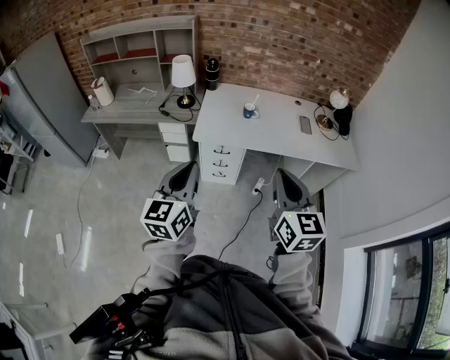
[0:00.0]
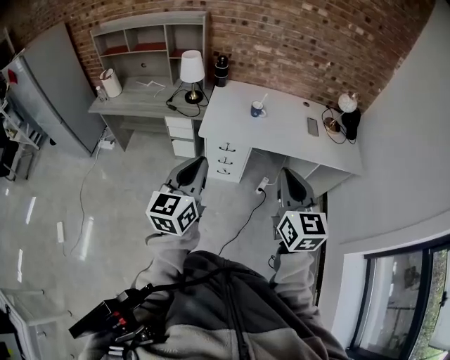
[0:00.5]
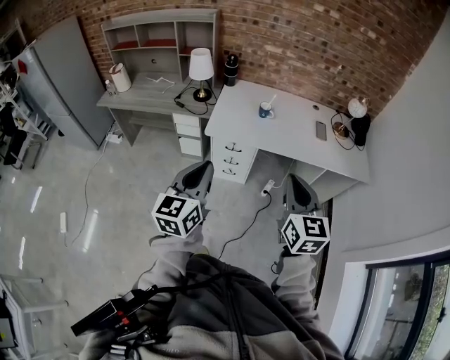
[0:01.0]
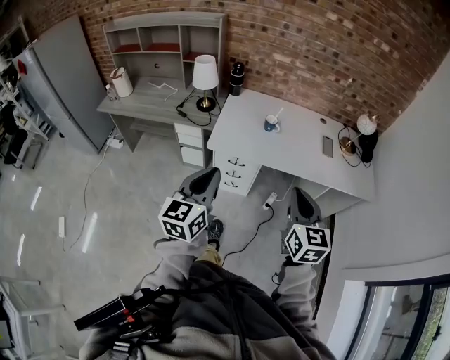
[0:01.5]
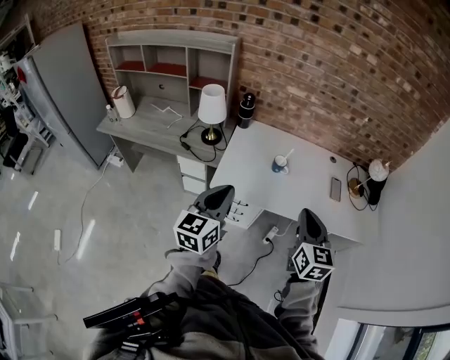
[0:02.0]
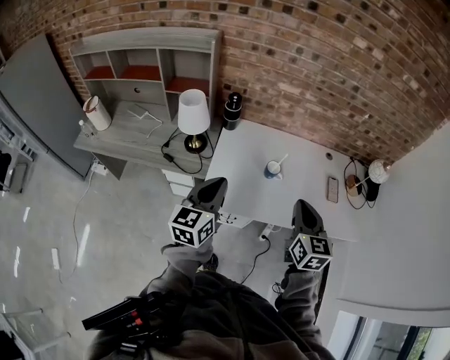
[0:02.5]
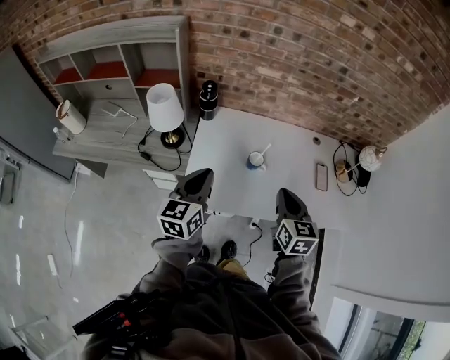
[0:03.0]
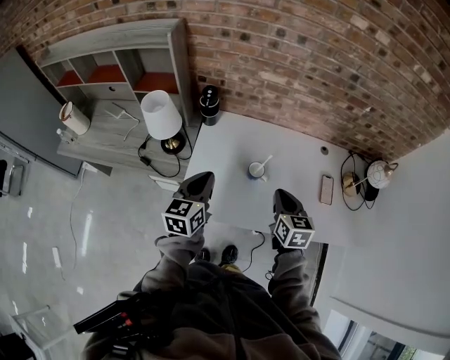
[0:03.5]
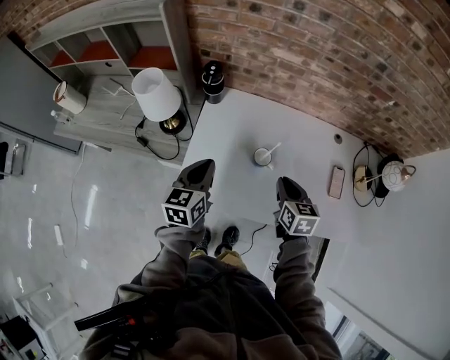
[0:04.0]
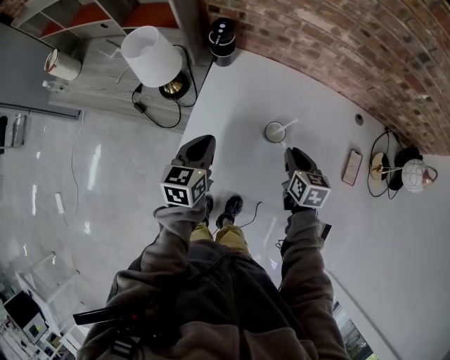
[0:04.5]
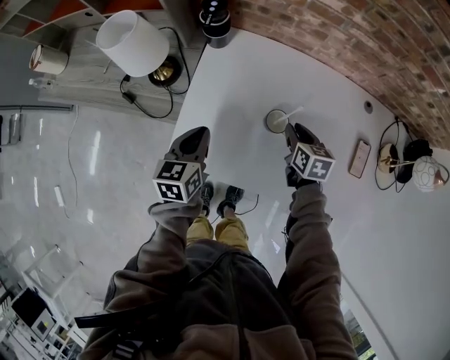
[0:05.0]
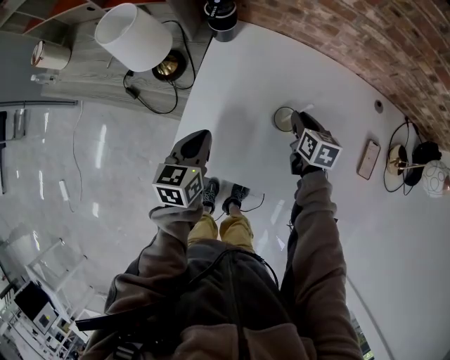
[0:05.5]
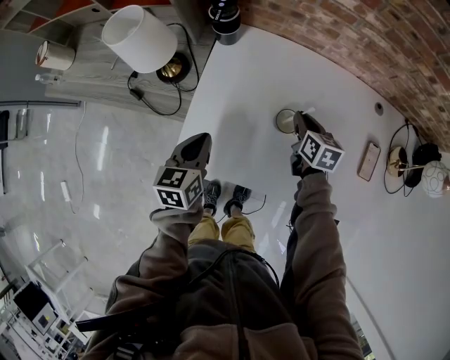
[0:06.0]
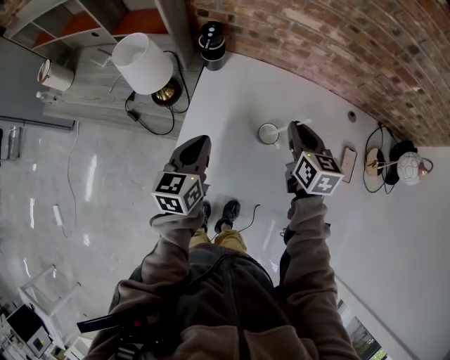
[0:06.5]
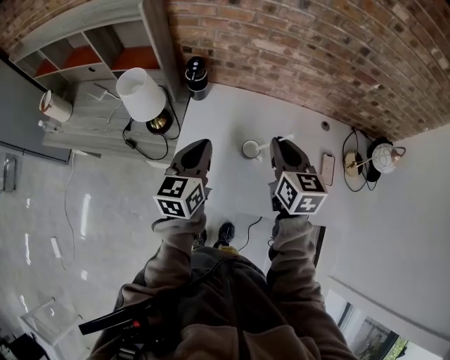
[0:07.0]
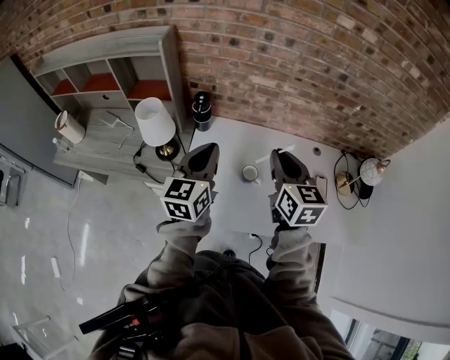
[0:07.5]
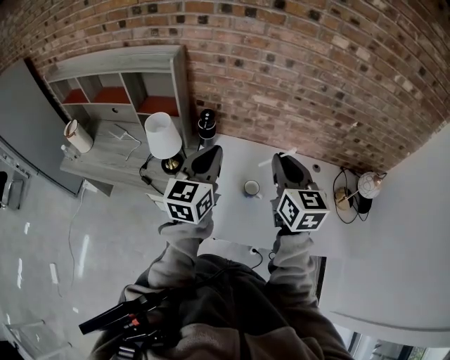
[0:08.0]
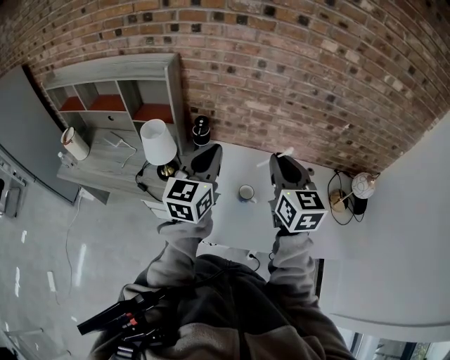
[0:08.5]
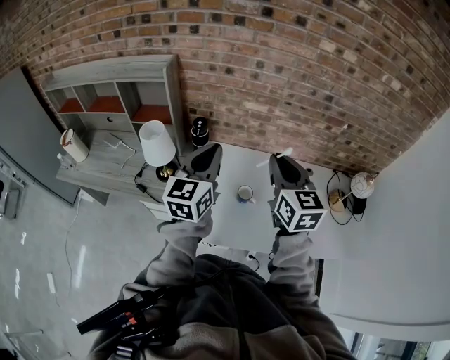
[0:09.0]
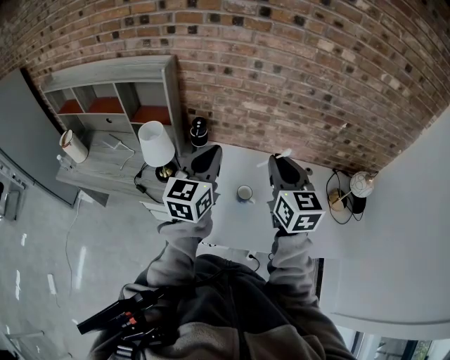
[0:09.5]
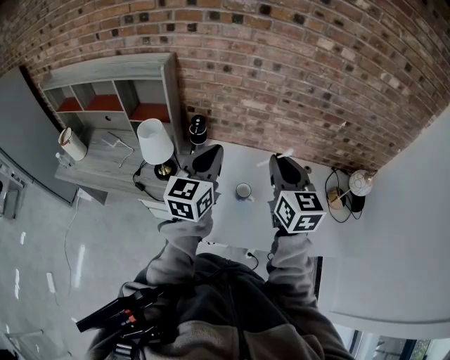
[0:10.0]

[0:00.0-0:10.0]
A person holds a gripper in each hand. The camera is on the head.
0:00.0 to 0:02.0: The grippers both shift forward by roughly 25 cm.
0:02.0 to 0:04.0: The two grippers go approximately 35 cm forward and downward. The left gripper changes its angle by about 20 degrees; the right gripper turns by some 30 degrees.
0:04.0 to 0:06.0: The right gripper goes about 20 cm forward and downward. Meanwhile the left gripper moves downward, some 10 cm.
0:06.0 to 0:08.0: The grippers both shift upward by roughly 35 cm. The right gripper angles its fingers upward, by some 30 degrees. Meanwhile the left gripper tilts its fingers approximately 30 degrees upward.
0:08.0 to 0:10.0: The grippers make only small movements.

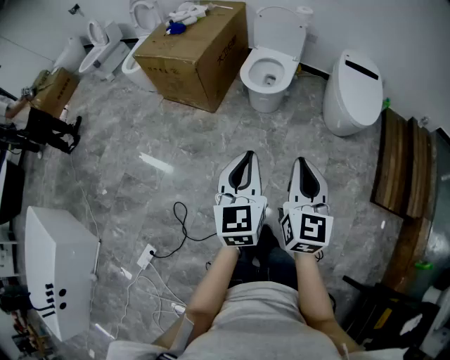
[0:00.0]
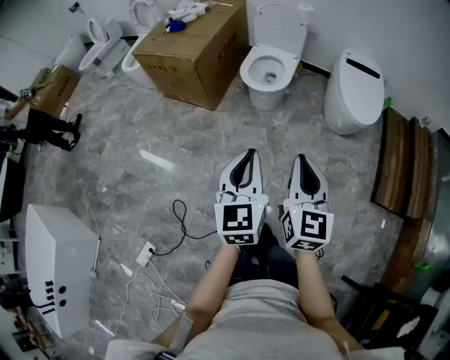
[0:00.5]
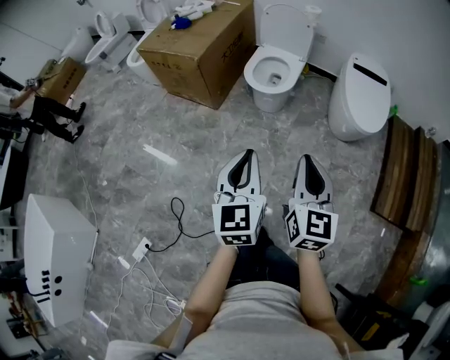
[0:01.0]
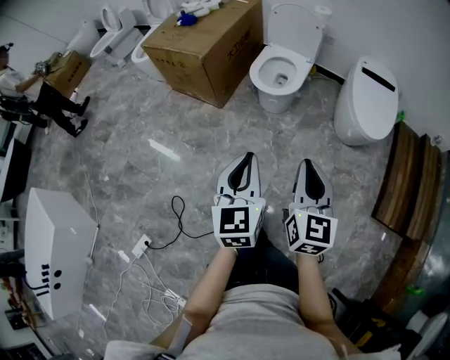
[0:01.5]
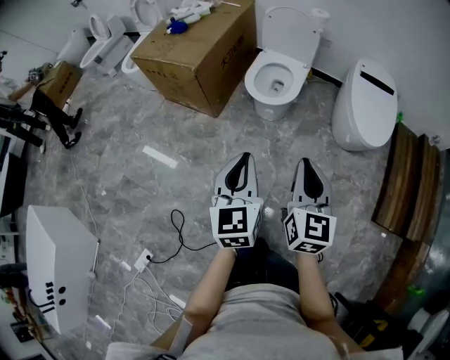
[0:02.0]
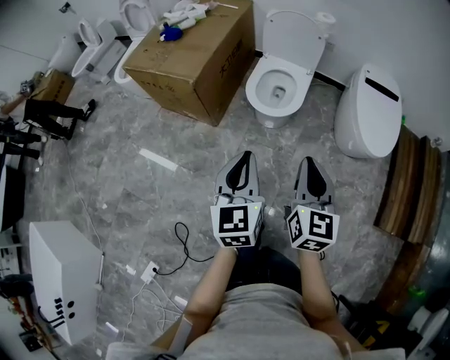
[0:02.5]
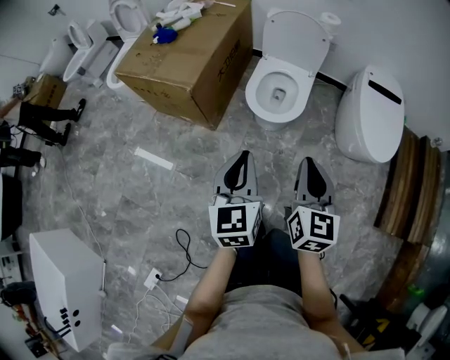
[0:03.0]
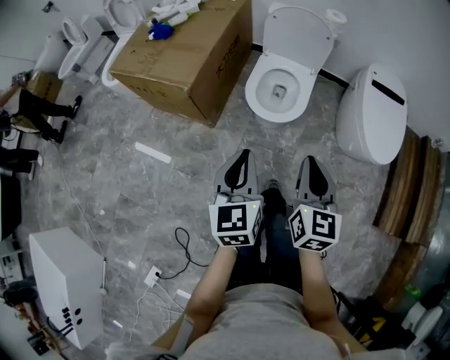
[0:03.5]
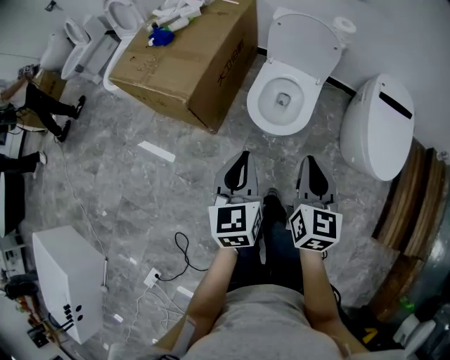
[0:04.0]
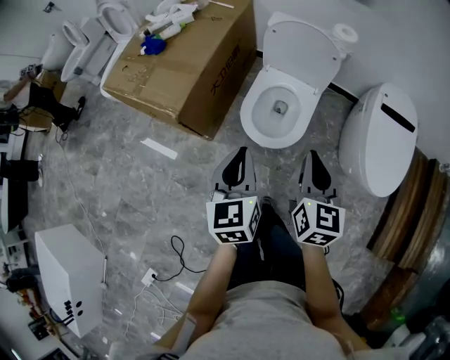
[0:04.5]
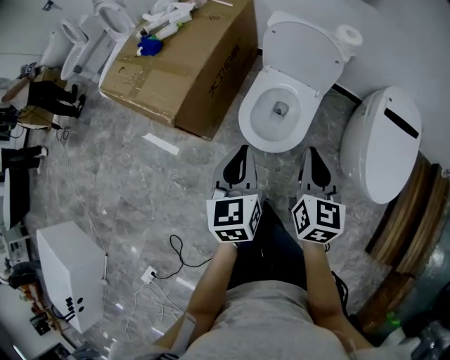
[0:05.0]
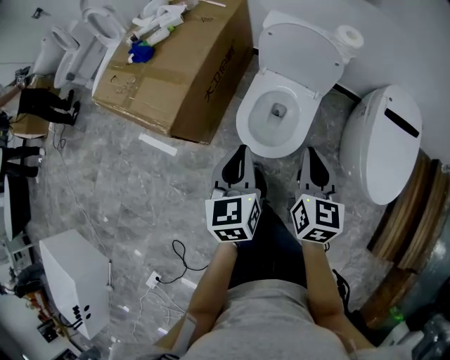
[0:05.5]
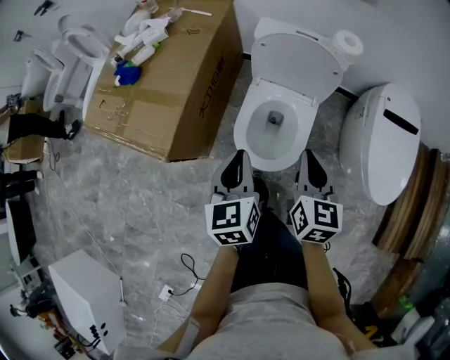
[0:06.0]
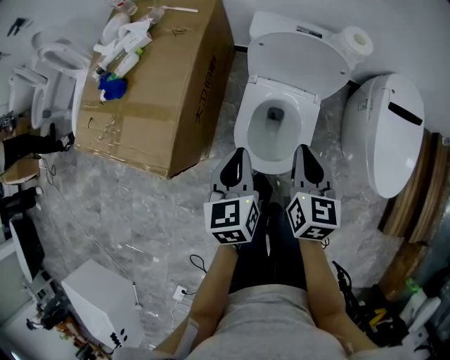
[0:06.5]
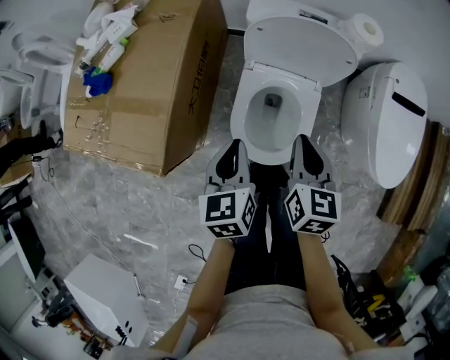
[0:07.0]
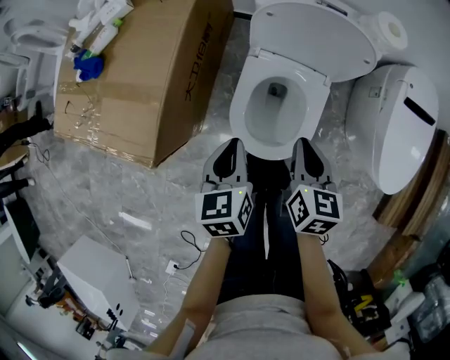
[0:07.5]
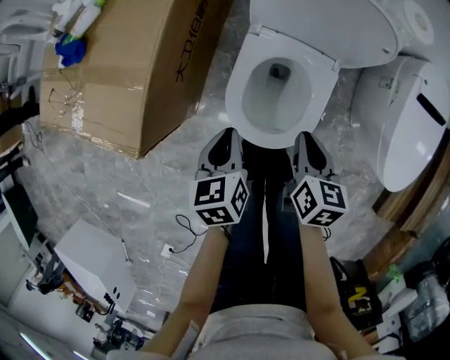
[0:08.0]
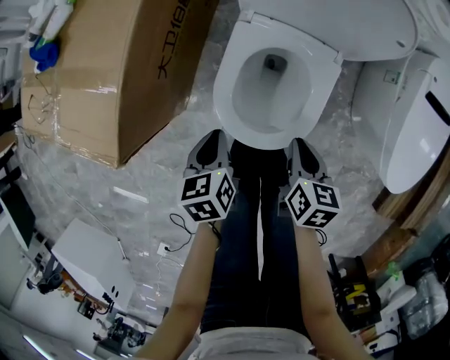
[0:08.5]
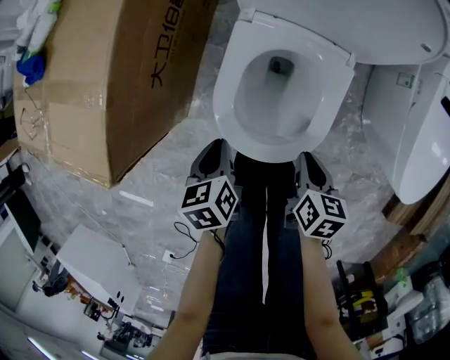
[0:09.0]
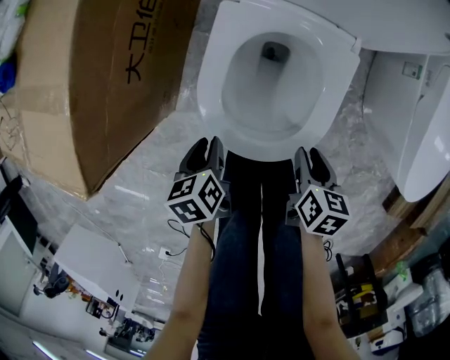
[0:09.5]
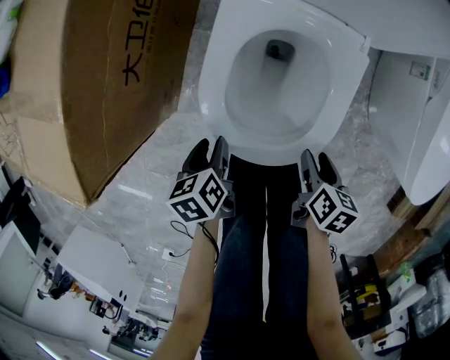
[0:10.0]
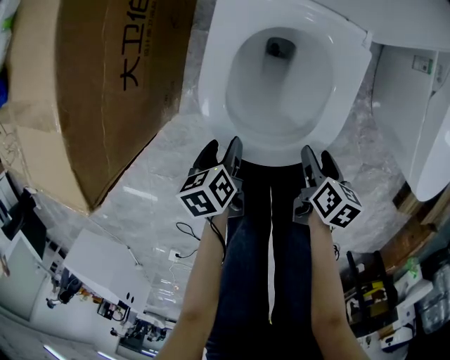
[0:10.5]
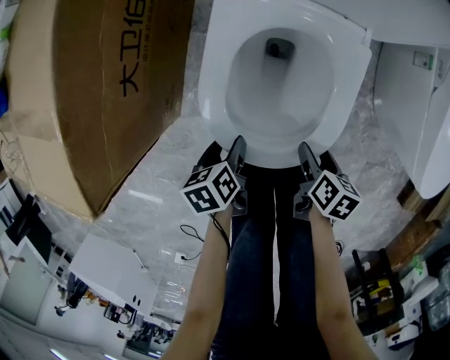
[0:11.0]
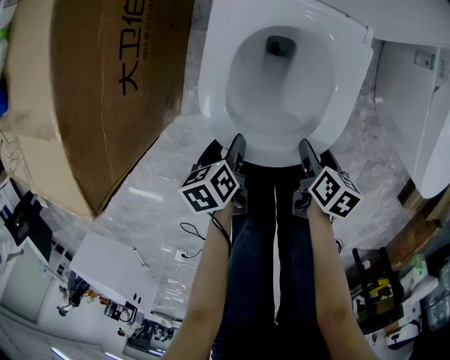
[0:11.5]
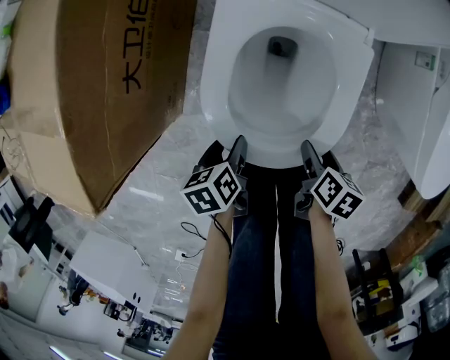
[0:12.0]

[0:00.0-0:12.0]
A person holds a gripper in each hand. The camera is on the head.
0:00.0 to 0:02.0: Both grippers move forward, roughly 15 cm.
0:02.0 to 0:04.0: Both grippers travel together forward, roughly 30 cm.
0:04.0 to 0:06.0: The two grippers go roughly 25 cm forward.
0:06.0 to 0:08.0: The grippers both shift downward by some 20 cm. The left gripper rotates about 20 degrees, while the right gripper changes its angle by some 20 degrees.
0:08.0 to 0:10.0: Both grippers move downward, about 25 cm. The right gripper swivels roughly 20 degrees, and opens its fingers. The left gripper opens its fingers.
0:10.0 to 0:12.0: The grippers stay close to where they were, moving slightly.

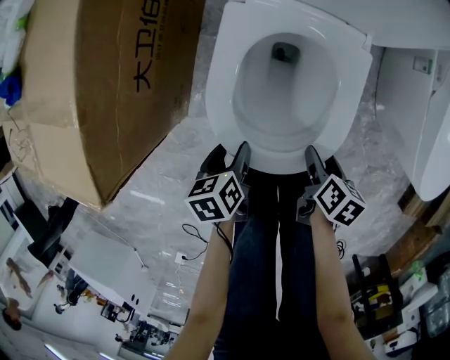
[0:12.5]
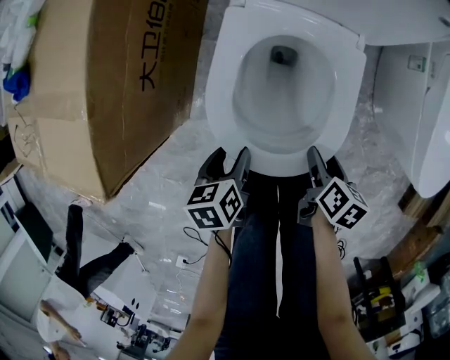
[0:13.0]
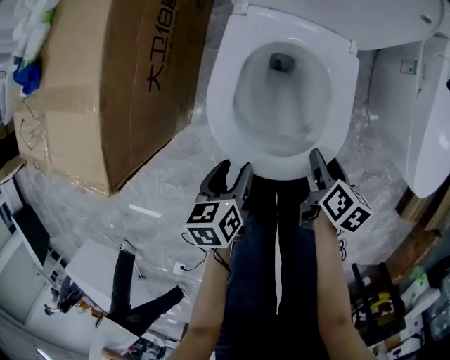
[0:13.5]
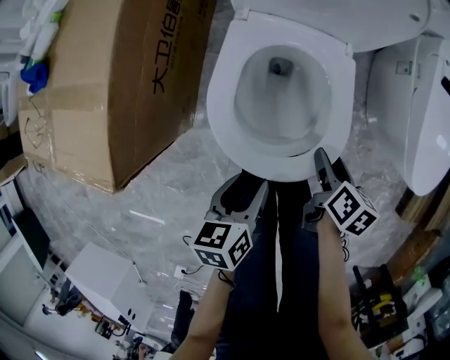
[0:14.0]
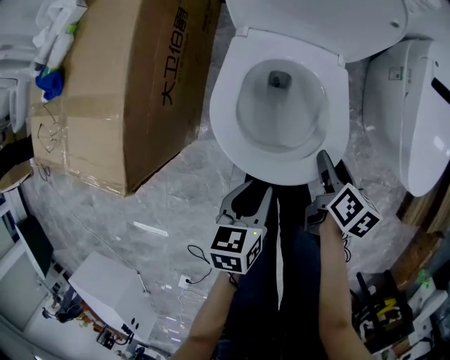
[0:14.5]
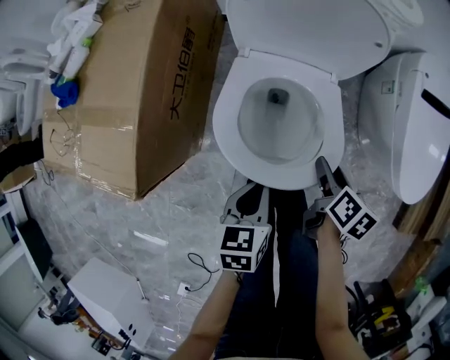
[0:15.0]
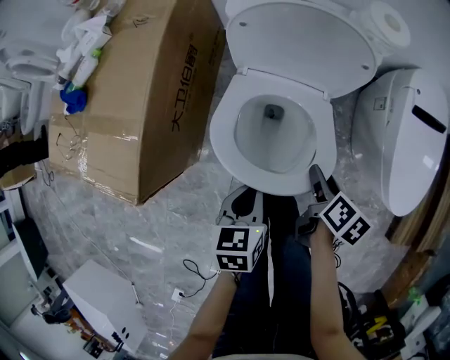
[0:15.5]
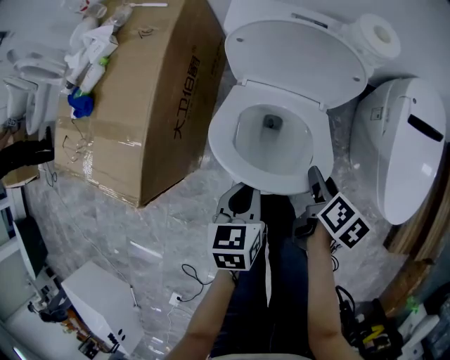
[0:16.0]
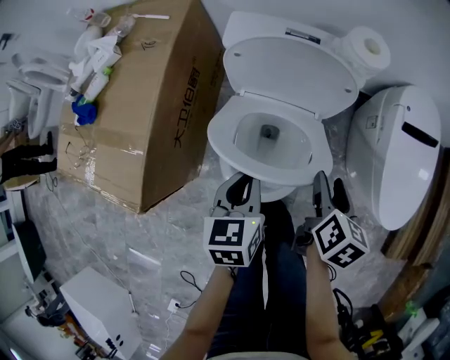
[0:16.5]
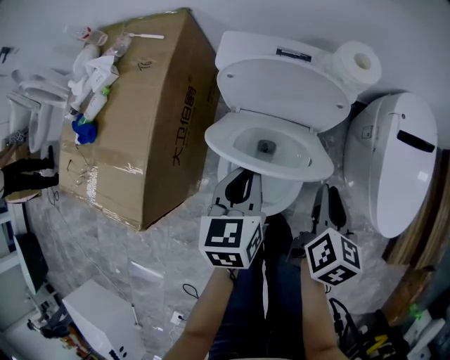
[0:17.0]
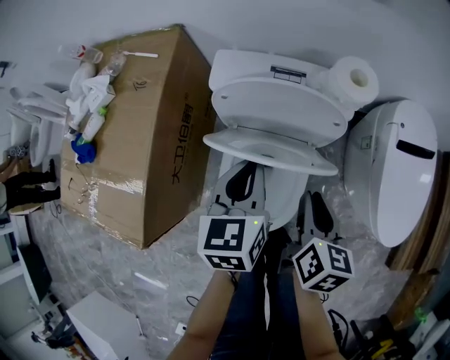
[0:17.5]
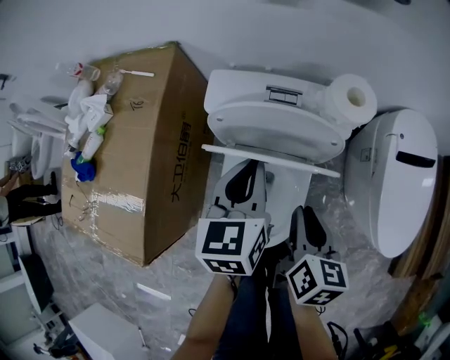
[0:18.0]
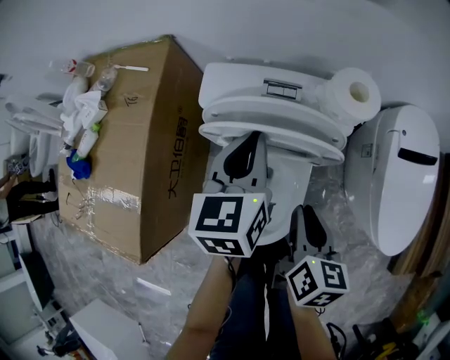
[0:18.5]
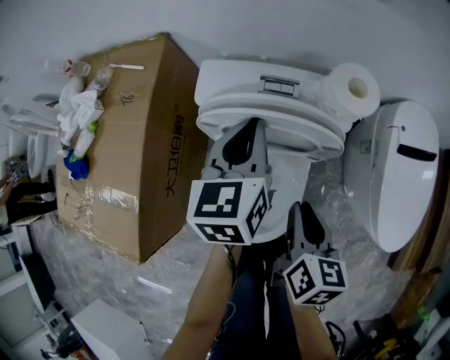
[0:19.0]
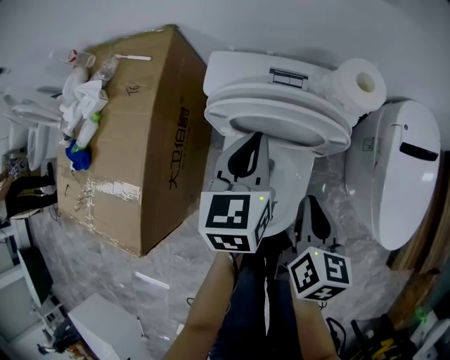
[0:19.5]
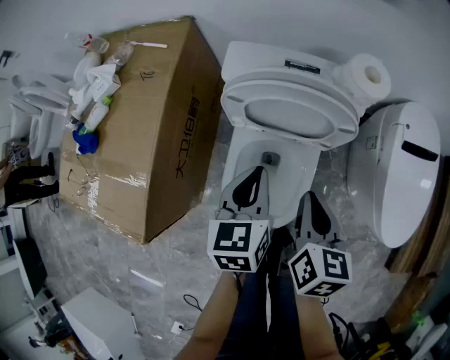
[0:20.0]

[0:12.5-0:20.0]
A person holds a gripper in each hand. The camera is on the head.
0:12.5 to 0:14.5: Both grippers travel together upward, approximately 15 cm. The left gripper swivels approximately 20 degrees, and closes its fingers.
0:14.5 to 0:16.5: The left gripper shifts about 20 cm forward and upward, and closes its fingers. The right gripper is displaced upward and forward by some 20 cm.
0:16.5 to 0:18.0: The right gripper goes approximately 10 cm forward and to the left, and closes up. Meanwhile the left gripper goes roughly 15 cm forward.
0:18.0 to 0:20.0: The left gripper travels backward by some 10 cm.
